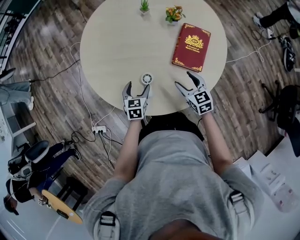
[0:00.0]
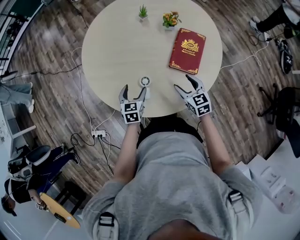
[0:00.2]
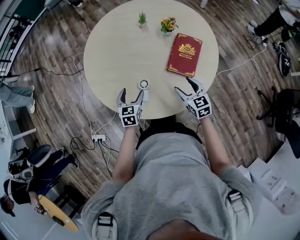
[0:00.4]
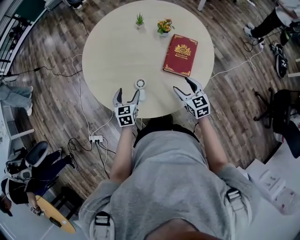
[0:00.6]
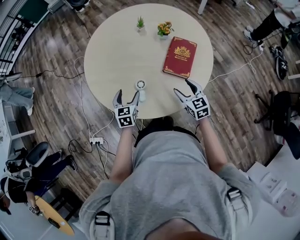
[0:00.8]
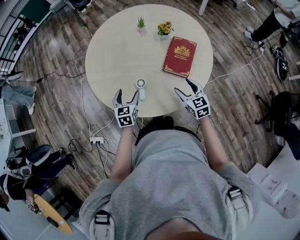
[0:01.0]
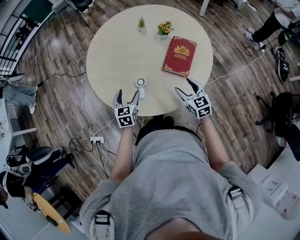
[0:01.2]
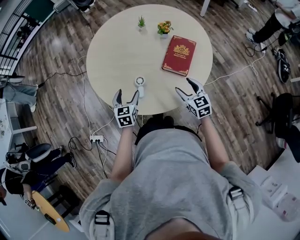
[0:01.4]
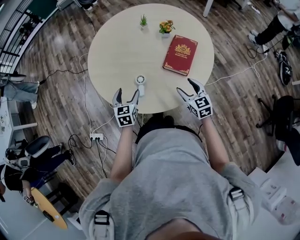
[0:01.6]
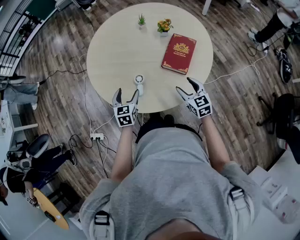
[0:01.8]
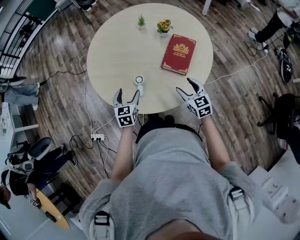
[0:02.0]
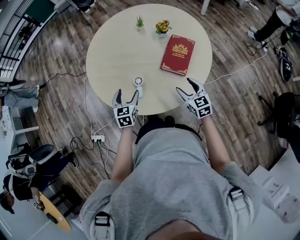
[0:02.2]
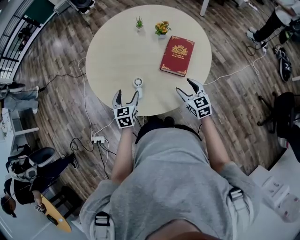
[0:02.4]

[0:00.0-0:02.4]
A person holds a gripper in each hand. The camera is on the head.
0:00.0 to 0:01.2: The right gripper travels backward and upward by about 10 cm, while the left gripper moves upward and backward, roughly 15 cm.
0:01.2 to 0:02.4: The grippers make only small movements.

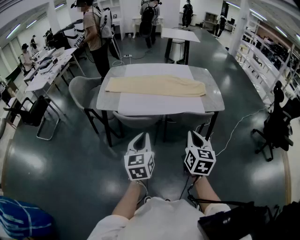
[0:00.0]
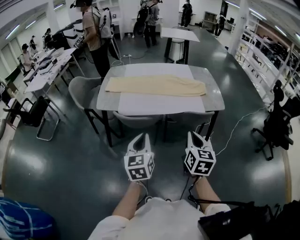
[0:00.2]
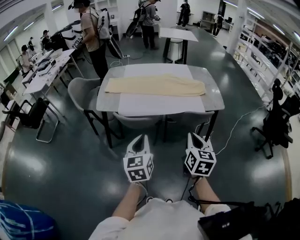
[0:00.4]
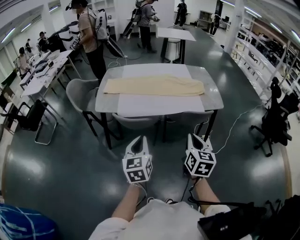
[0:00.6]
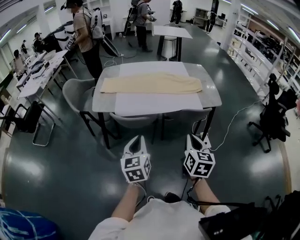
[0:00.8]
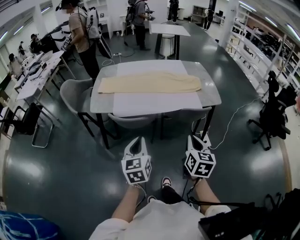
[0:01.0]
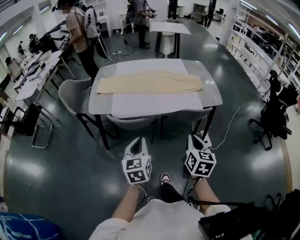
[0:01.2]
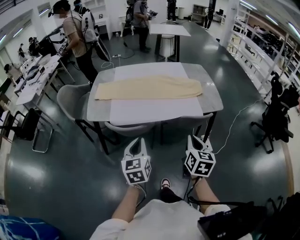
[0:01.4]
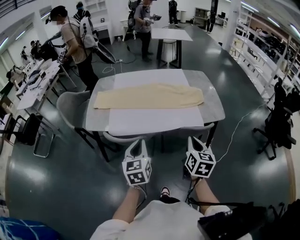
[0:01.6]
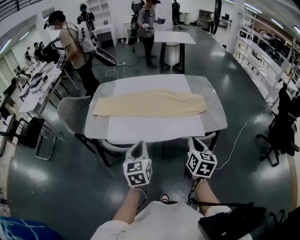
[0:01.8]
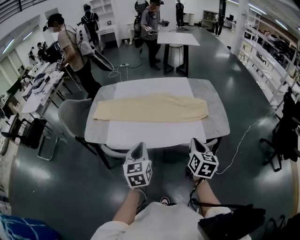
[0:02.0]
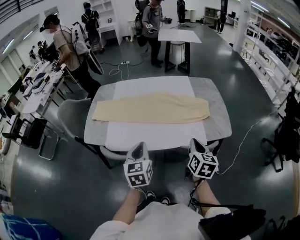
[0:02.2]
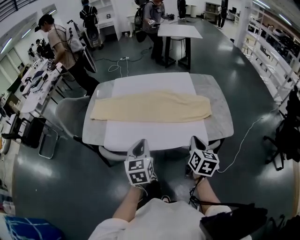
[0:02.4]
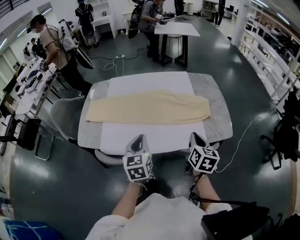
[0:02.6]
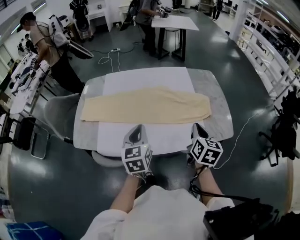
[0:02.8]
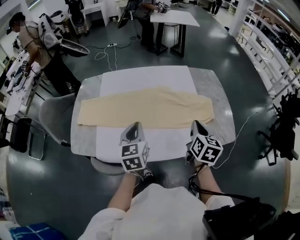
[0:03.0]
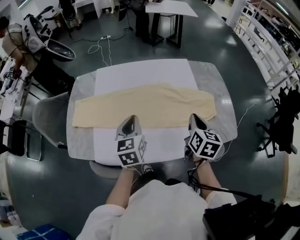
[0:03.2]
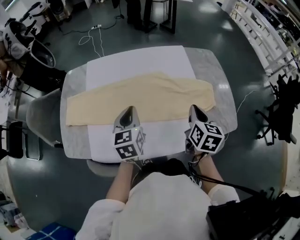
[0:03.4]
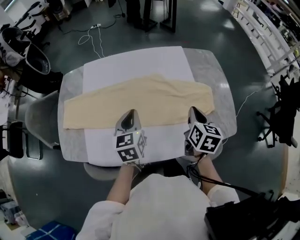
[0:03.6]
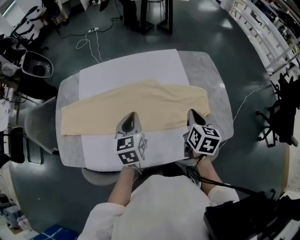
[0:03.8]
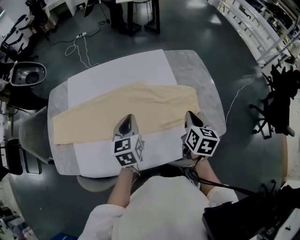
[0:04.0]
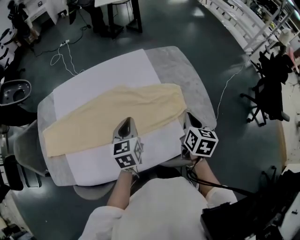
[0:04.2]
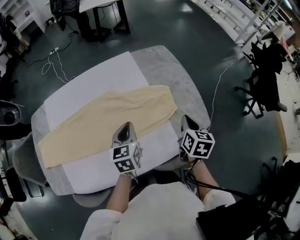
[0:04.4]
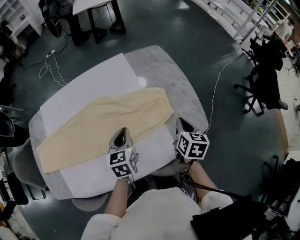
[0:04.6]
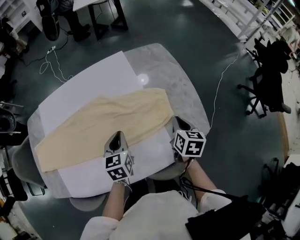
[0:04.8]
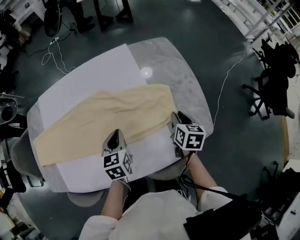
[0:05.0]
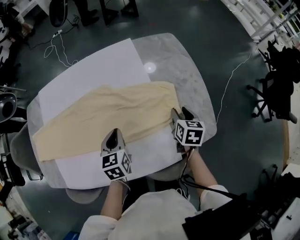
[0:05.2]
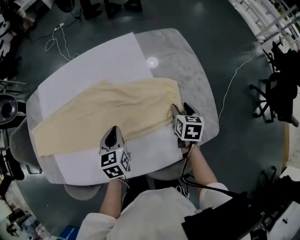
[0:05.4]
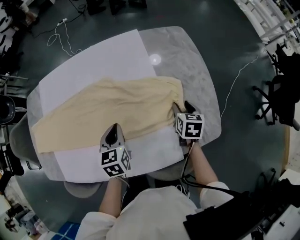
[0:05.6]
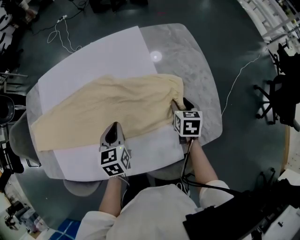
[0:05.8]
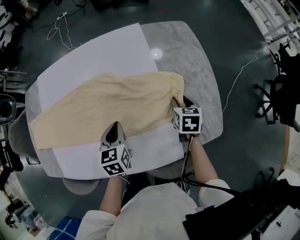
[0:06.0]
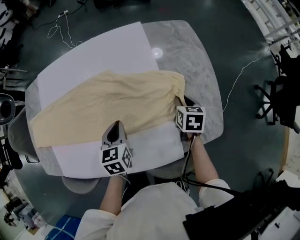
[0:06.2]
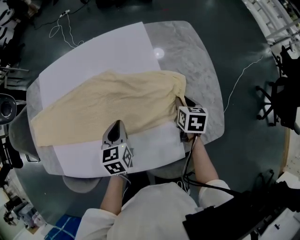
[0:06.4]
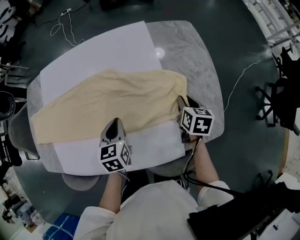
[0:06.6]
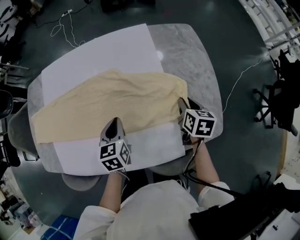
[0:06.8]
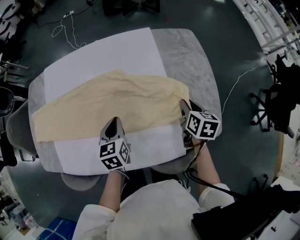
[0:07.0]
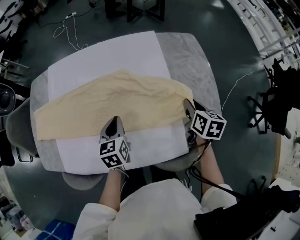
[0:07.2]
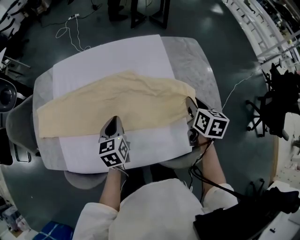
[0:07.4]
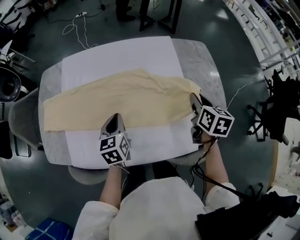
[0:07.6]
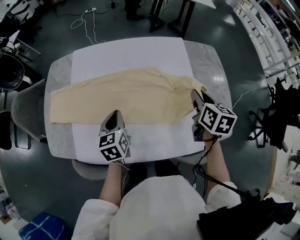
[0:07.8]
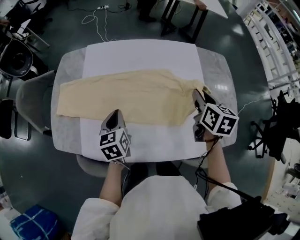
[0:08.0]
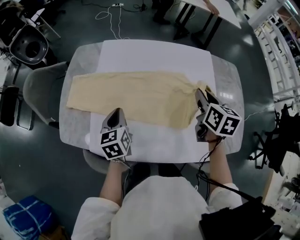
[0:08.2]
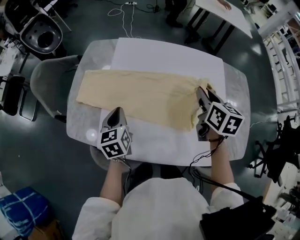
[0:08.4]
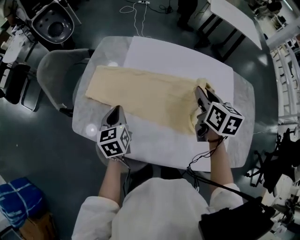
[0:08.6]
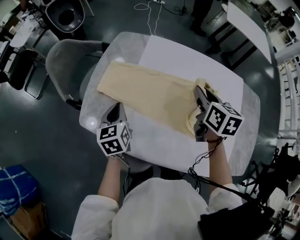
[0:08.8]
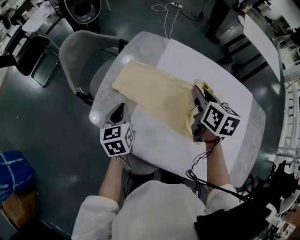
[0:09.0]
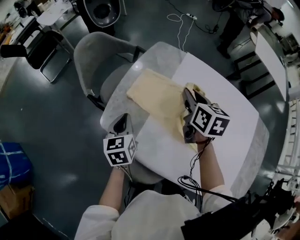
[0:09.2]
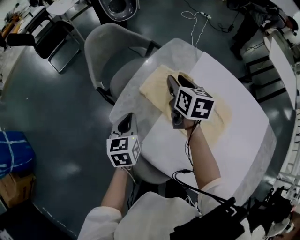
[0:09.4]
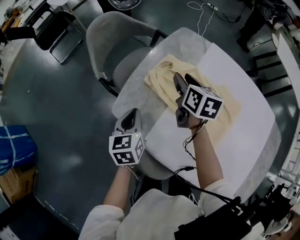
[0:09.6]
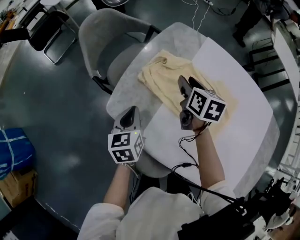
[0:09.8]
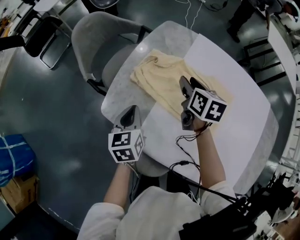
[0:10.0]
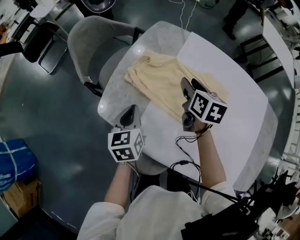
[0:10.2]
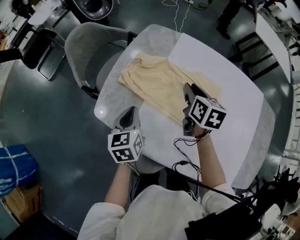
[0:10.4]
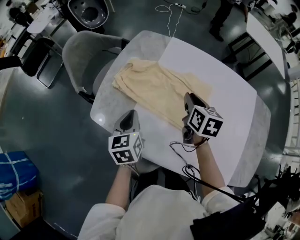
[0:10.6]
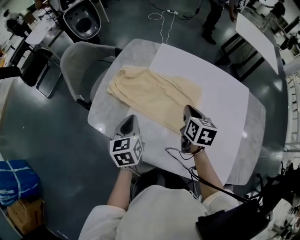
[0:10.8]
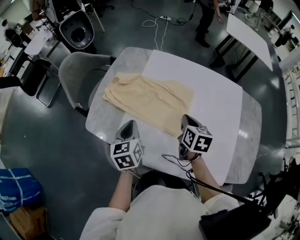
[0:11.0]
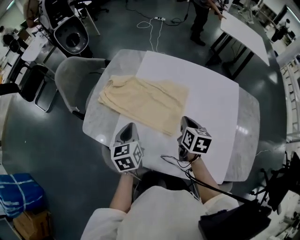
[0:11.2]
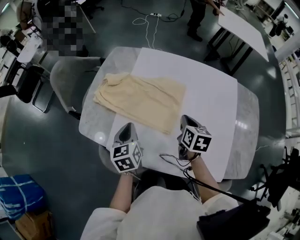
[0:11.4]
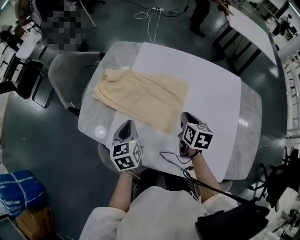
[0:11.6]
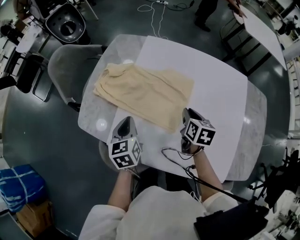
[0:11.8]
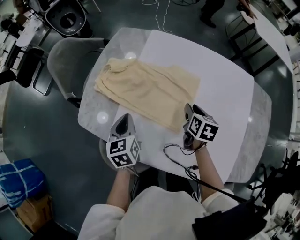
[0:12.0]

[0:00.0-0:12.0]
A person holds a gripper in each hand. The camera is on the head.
0:00.0 to 0:01.6: The grippers both shift forward by about 15 cm.
0:01.6 to 0:03.0: The two grippers go roughly 35 cm forward.
0:03.0 to 0:04.4: The right gripper moves to the right, downward and forward, some 25 cm. Meanwhile the left gripper shifts some 30 cm to the right, forward and downward, and rotates approximately 20 degrees.
0:04.4 to 0:06.0: The right gripper moves downward and forward, approximately 20 cm, changes its angle by some 30 degrees, and opens its fingers. Meanwhile the left gripper goes about 10 cm downward.
0:06.0 to 0:07.6: The left gripper heads to the left and upward, covering some 15 cm. The right gripper is displaced upward and to the left by about 20 cm.
0:07.6 to 0:09.0: Both grippers are carried approximately 50 cm. The left gripper swivels approximately 30 degrees; the right gripper rotates roughly 40 degrees.
0:09.0 to 0:10.4: The left gripper goes to the left and returns, about 10 cm each way; the right gripper moves downward, roughly 10 cm, and goes to the left and returns, some 20 cm each way.
0:10.4 to 0:12.0: The right gripper travels to the right, backward and downward by some 20 cm, and closes, then opens again; the left gripper moves to the right, approximately 10 cm.

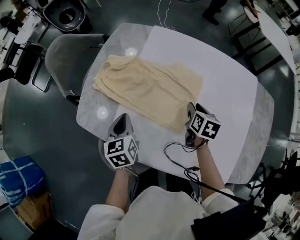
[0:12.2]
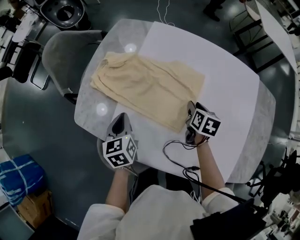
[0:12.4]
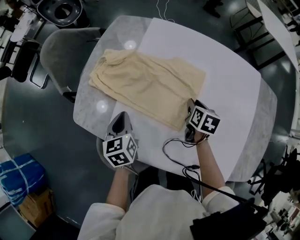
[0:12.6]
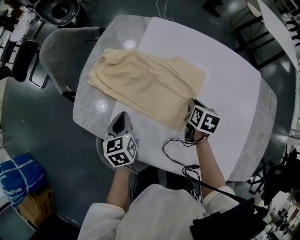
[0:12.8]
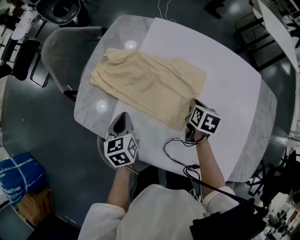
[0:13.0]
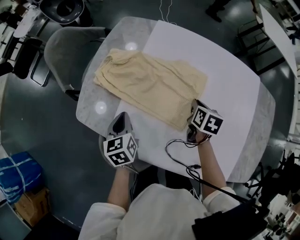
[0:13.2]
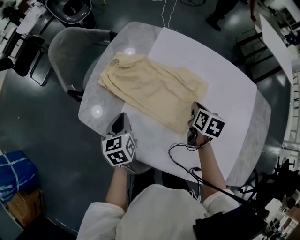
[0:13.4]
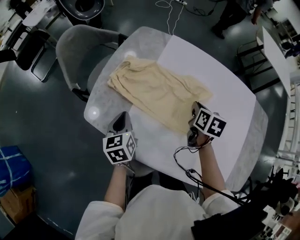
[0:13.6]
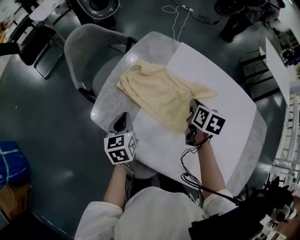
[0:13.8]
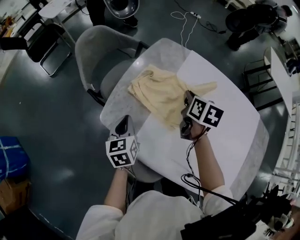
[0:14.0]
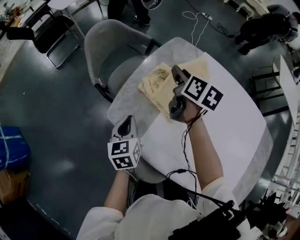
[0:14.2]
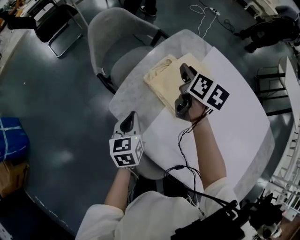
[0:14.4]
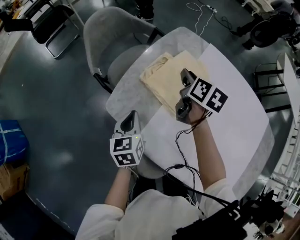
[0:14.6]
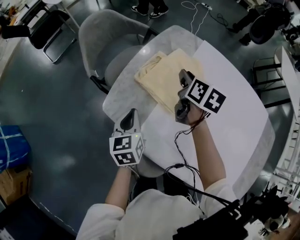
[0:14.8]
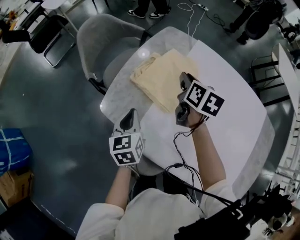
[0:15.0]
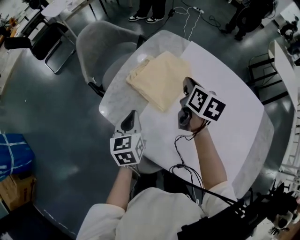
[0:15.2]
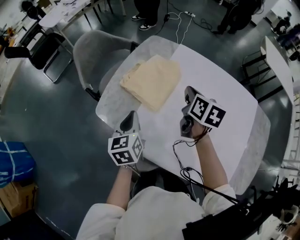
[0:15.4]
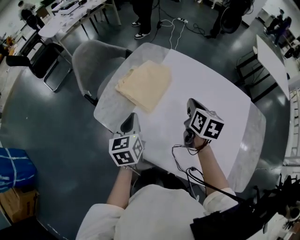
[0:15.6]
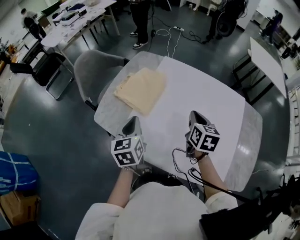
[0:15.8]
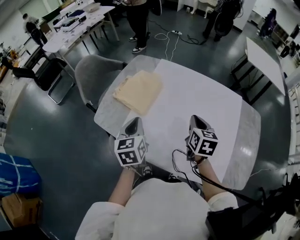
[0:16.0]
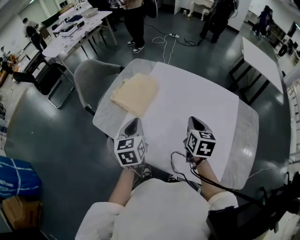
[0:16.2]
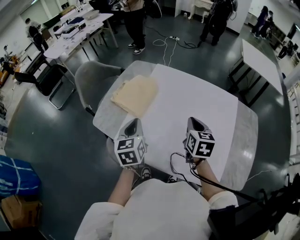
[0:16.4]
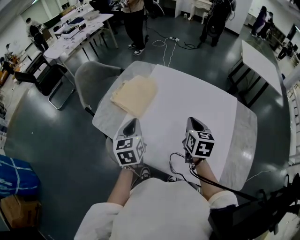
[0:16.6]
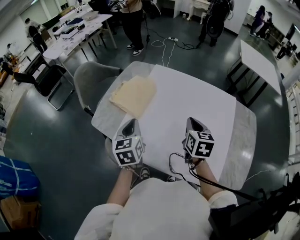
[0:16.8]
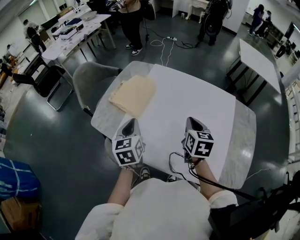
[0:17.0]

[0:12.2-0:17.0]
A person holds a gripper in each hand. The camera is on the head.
0:12.2 to 0:13.8: The left gripper goes approximately 10 cm to the left. Meanwhile the right gripper is displaced to the left, upward and forward by about 20 cm, and closes up.
0:13.8 to 0:15.4: Both grippers travel together upward, some 5 cm. The left gripper travels to the left and back again, some 5 cm each way; the right gripper travels to the left and back again, about 20 cm each way, and opens and closes again.
0:15.4 to 0:17.0: The left gripper heads to the right, upward and backward, covering roughly 15 cm, while the right gripper heads backward and to the right, covering some 25 cm.

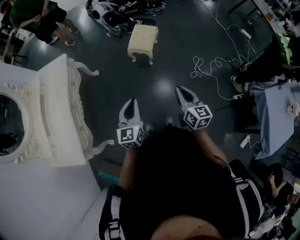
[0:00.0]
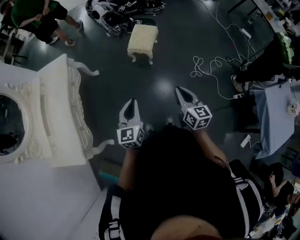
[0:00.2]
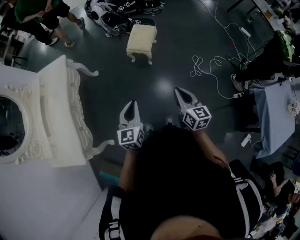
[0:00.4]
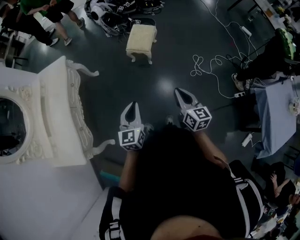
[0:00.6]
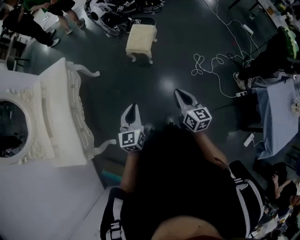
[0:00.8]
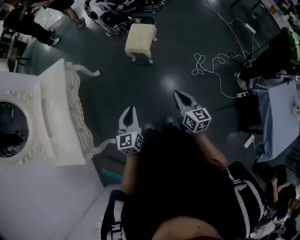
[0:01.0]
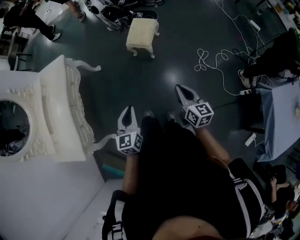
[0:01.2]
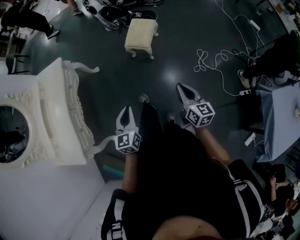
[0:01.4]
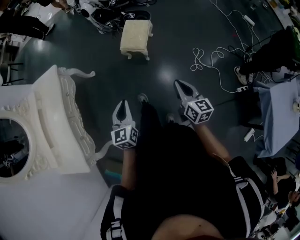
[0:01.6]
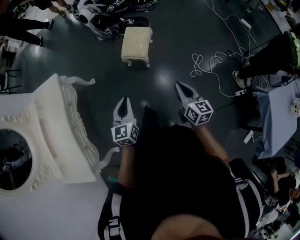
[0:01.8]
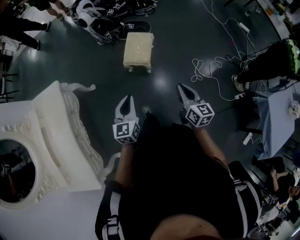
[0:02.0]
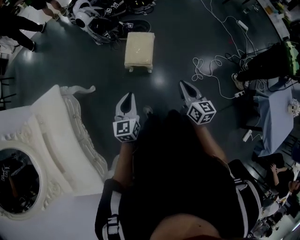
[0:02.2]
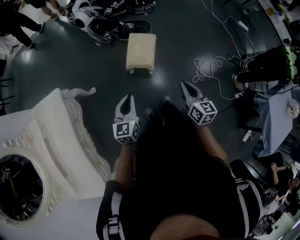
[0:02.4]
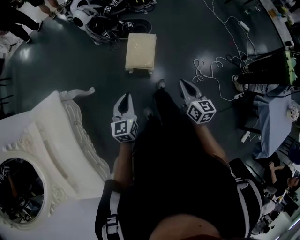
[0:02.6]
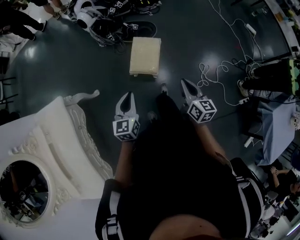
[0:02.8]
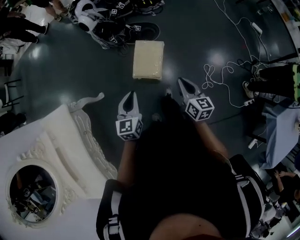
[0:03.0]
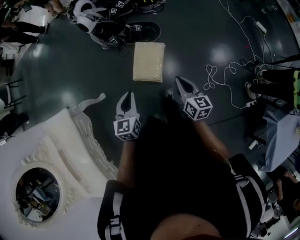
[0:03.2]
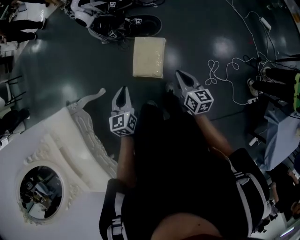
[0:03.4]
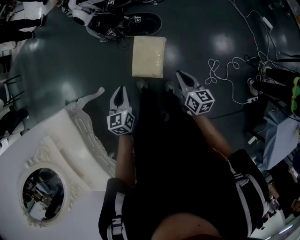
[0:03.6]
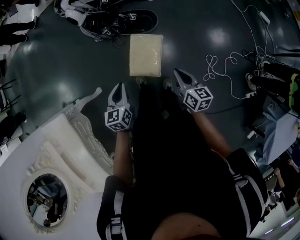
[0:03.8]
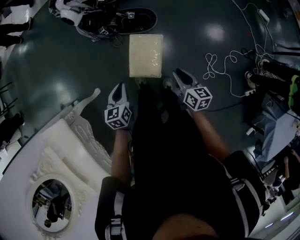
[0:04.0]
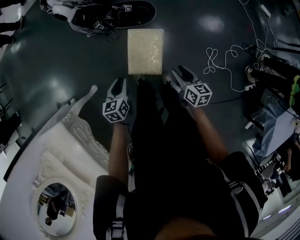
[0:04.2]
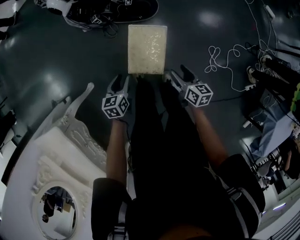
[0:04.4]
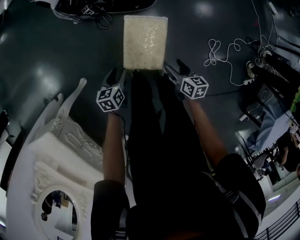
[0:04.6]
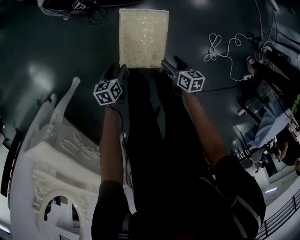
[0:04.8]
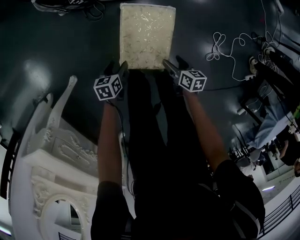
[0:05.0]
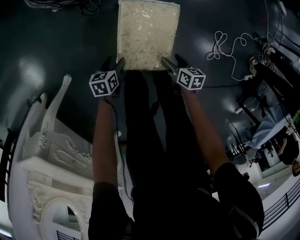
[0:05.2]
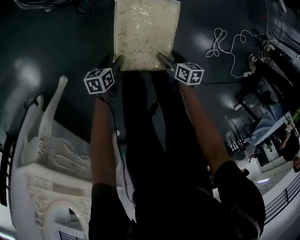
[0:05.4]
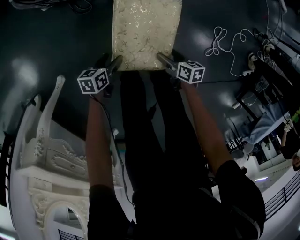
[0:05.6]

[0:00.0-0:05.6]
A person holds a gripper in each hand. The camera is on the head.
0:00.0 to 0:01.4: The right gripper shifts approximately 10 cm to the right and forward; the left gripper shifts about 5 cm downward.
0:01.4 to 0:02.8: The grippers both shift forward by about 35 cm.
0:02.8 to 0:04.2: The two grippers go some 30 cm forward and downward. The right gripper opens its fingers, while the left gripper changes its angle by about 20 degrees.
0:04.2 to 0:05.6: The grippers both shift downward by some 40 cm. The left gripper swivels roughly 30 degrees, and opens up. The right gripper swivels roughly 30 degrees, and opens its fingers.
